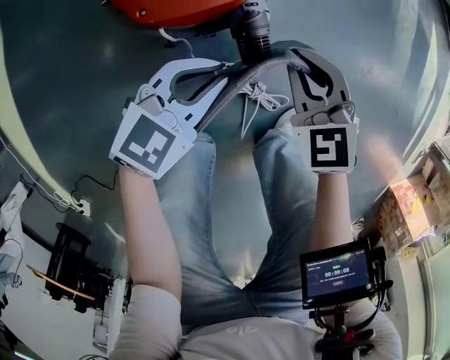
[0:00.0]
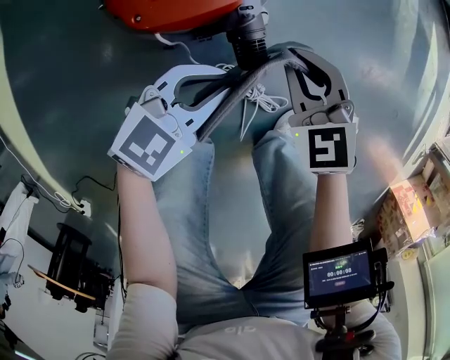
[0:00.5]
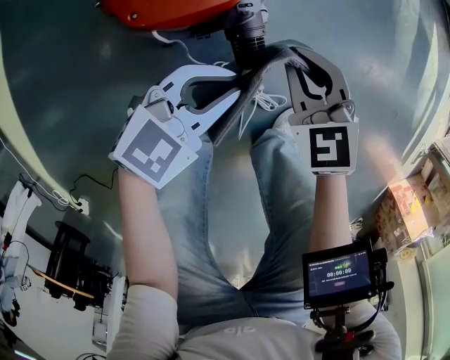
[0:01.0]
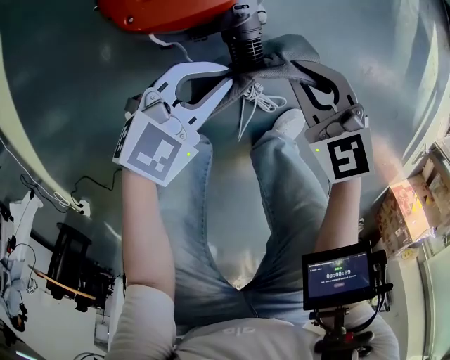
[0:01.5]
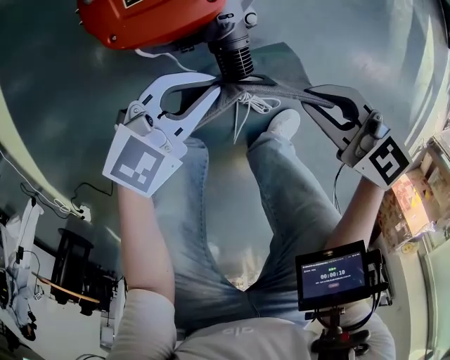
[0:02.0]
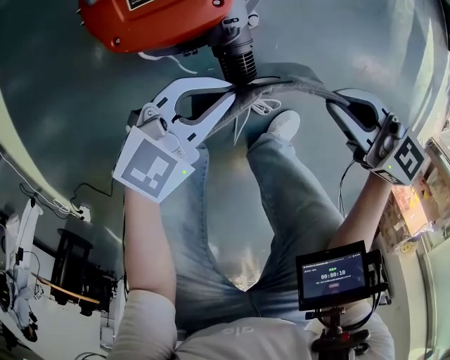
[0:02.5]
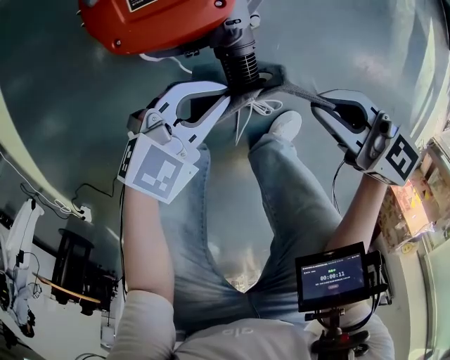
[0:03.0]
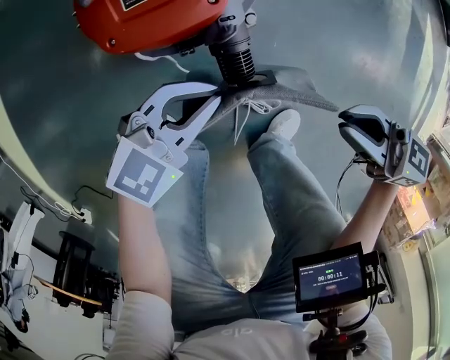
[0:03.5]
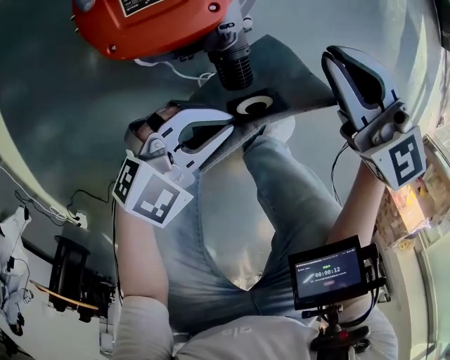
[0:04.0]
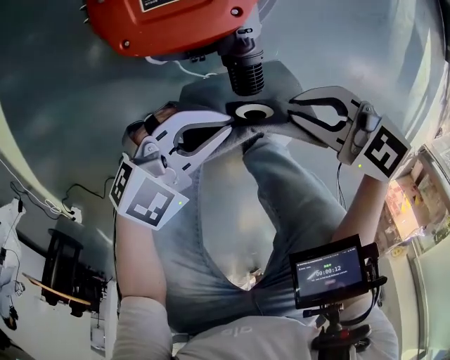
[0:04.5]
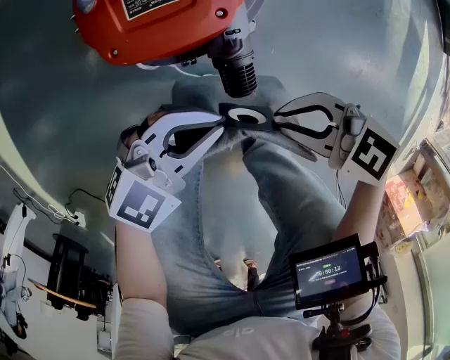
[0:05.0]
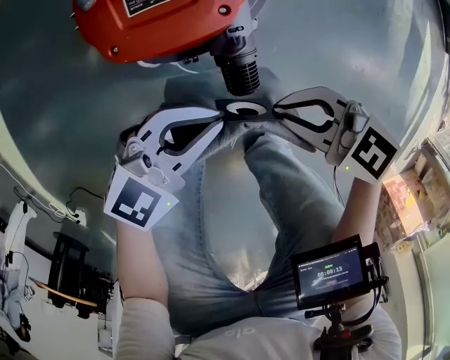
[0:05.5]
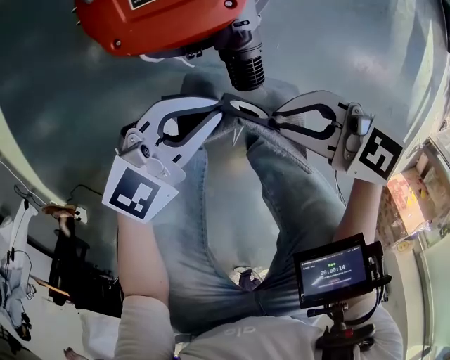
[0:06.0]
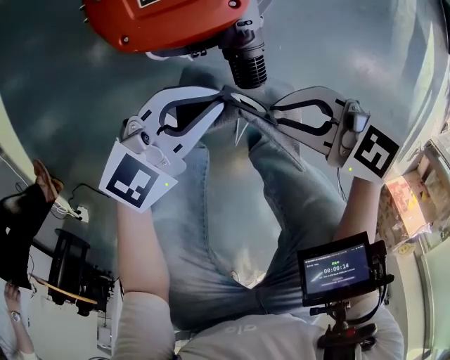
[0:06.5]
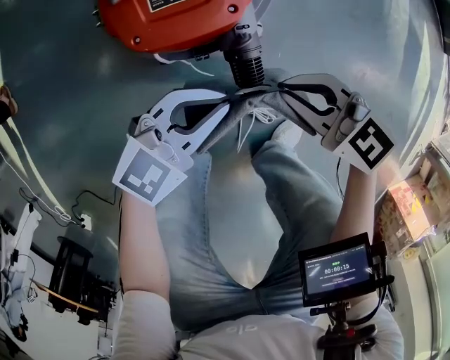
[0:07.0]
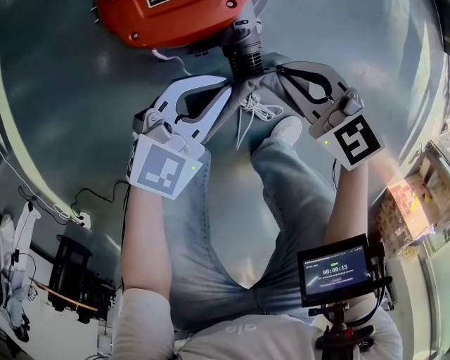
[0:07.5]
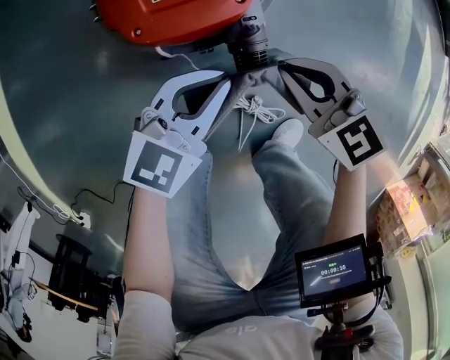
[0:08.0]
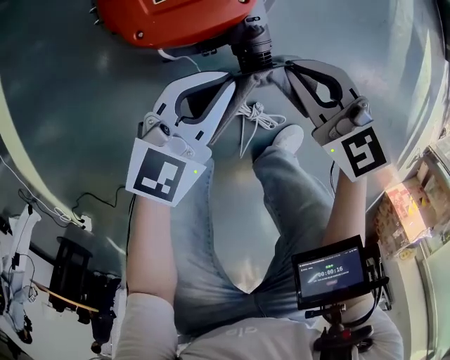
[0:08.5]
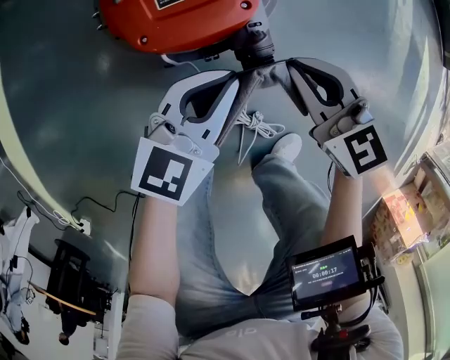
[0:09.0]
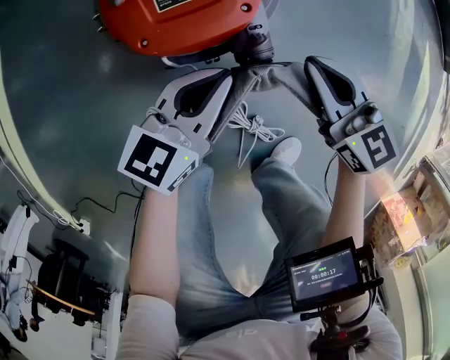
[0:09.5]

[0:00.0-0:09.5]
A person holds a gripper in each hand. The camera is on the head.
0:00.0 to 0:02.0: The right gripper ends up roughly 5 cm from where it was, and swivels approximately 40 degrees.
0:02.0 to 0:04.0: The left gripper ends up approximately 5 cm from where it was. Meanwhile the right gripper ends up about 10 cm from where it was, and swivels approximately 20 degrees.
0:04.0 to 0:05.5: The right gripper moves some 15 cm, and changes its angle by about 40 degrees.
0:05.5 to 0:07.5: The left gripper shifts by about 5 cm. The right gripper changes place by roughly 5 cm, and swivels roughly 30 degrees.
0:07.5 to 0:09.5: Both grippers move forward, about 10 cm. The left gripper changes its angle by about 30 degrees. Meanwhile the right gripper swivels approximately 20 degrees.

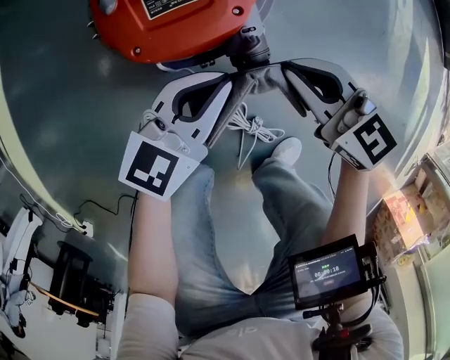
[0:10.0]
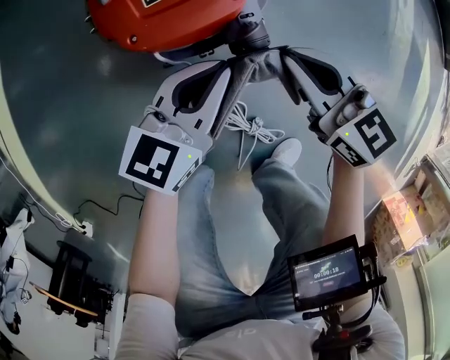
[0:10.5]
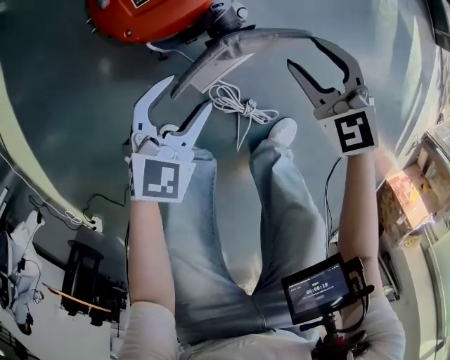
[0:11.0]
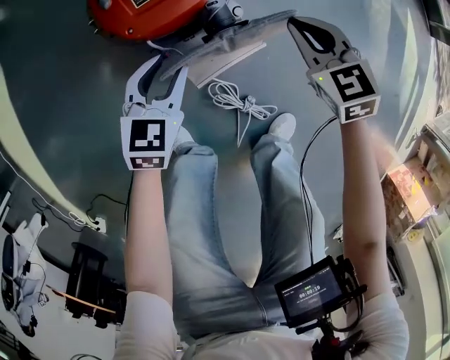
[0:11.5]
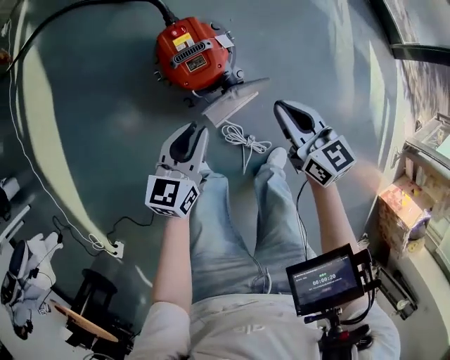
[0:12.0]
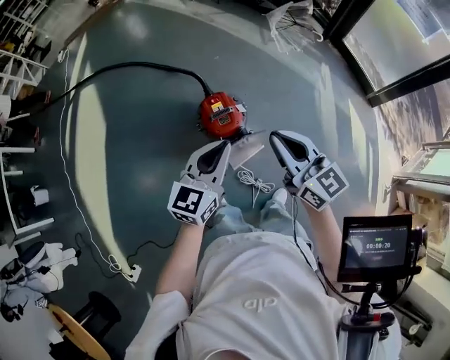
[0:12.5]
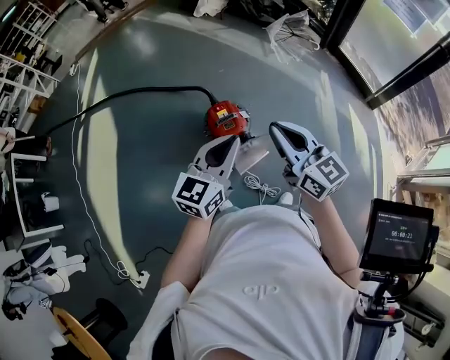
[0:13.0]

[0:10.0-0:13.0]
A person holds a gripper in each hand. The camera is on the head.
0:10.0 to 0:11.5: The right gripper is displaced to the right by about 5 cm, changes its angle by about 30 degrees, and opens, then closes once more; the left gripper shifts approximately 5 cm to the left, changes its angle by some 30 degrees, and opens up.
0:11.5 to 0:13.0: Both grippers travel together upward, some 70 cm. The left gripper points its fingers about 30 degrees further upward, and closes its fingers. Meanwhile the right gripper points its fingers some 40 degrees further upward.

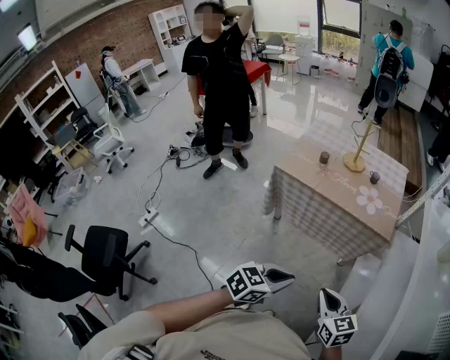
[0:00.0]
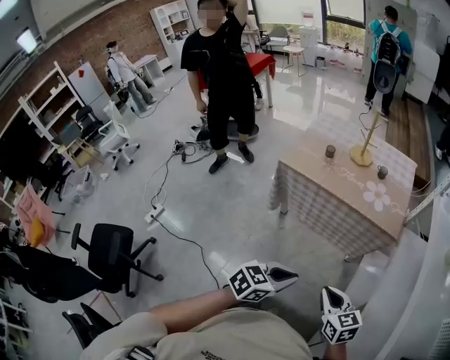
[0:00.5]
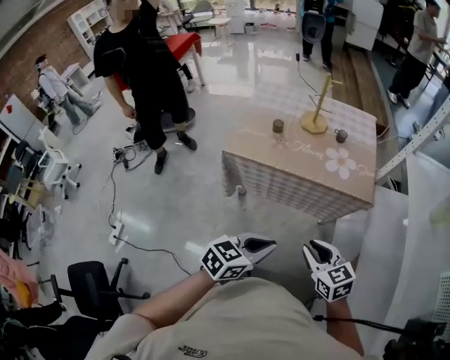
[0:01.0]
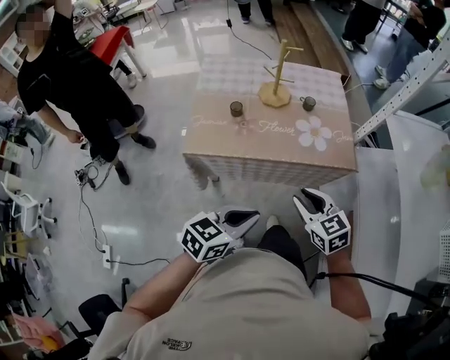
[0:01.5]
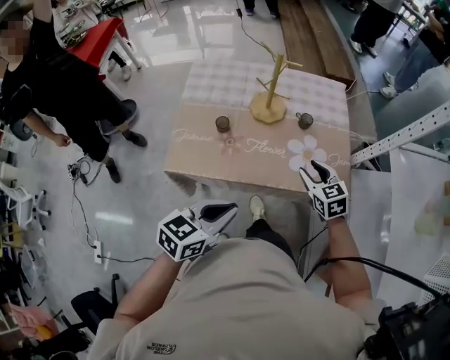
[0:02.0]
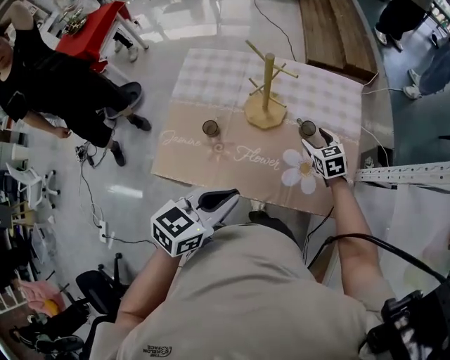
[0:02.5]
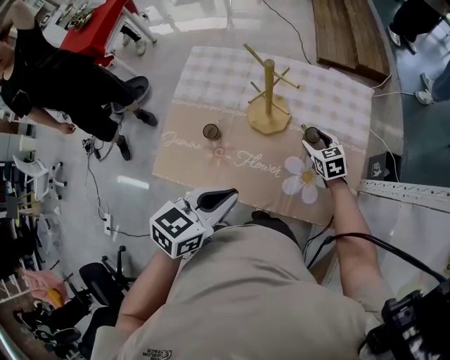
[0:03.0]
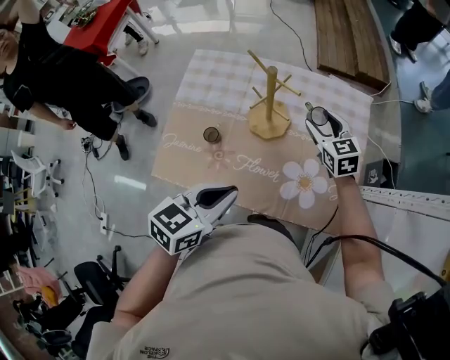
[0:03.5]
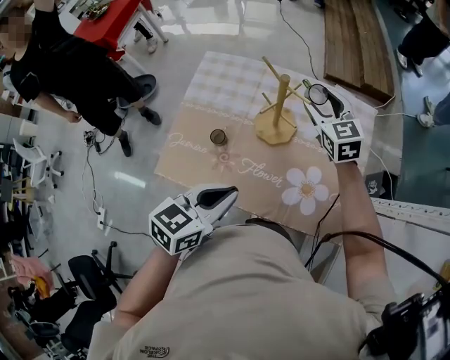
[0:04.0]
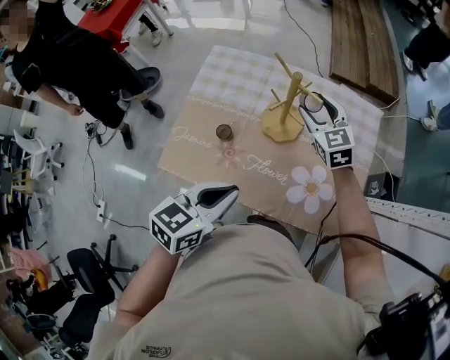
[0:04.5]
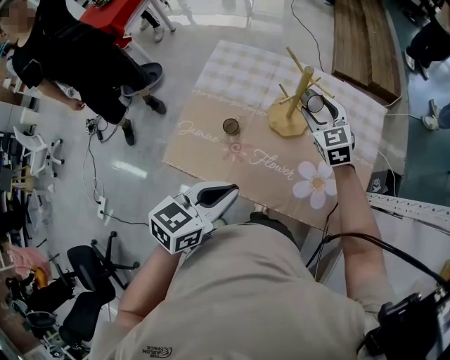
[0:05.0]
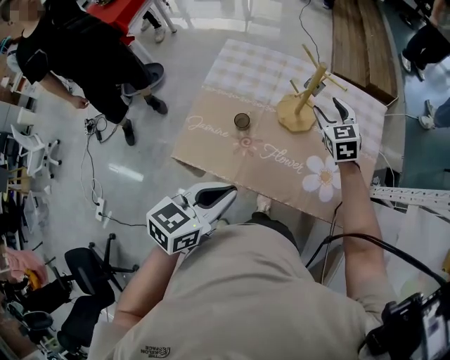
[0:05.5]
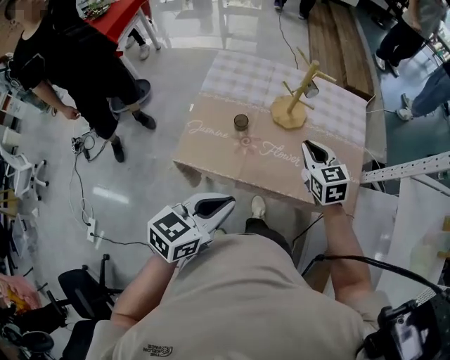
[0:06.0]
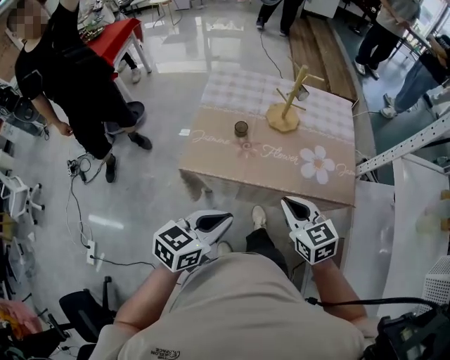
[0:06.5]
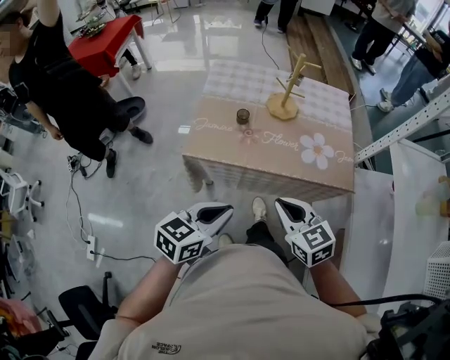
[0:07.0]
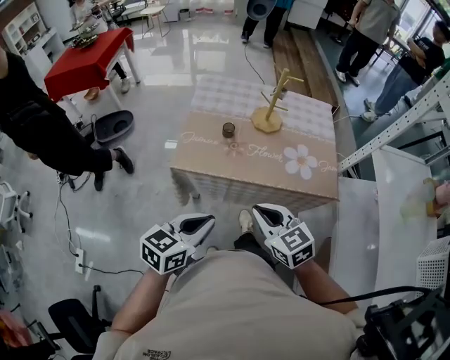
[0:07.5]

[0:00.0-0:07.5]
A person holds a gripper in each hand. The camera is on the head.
0:00.0 to 0:02.0: The two grippers travel together, forward, some 50 cm. The right gripper rotates approximately 20 degrees, and opens up.
0:02.0 to 0:04.0: The left gripper heads forward, covering some 20 cm. Meanwhile the right gripper shifts approximately 30 cm forward.
0:04.0 to 0:05.5: The left gripper goes approximately 10 cm backward and to the left. Meanwhile the right gripper is displaced downward and backward by about 10 cm.
0:05.5 to 0:07.5: The left gripper is displaced backward by roughly 20 cm, while the right gripper is displaced backward by approximately 50 cm, and closes up.

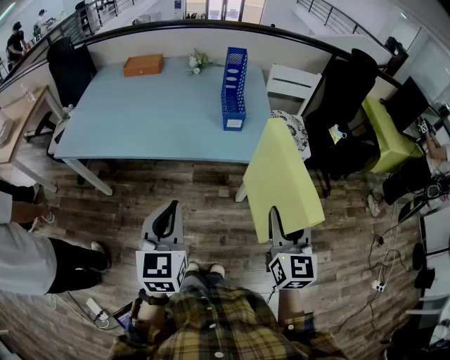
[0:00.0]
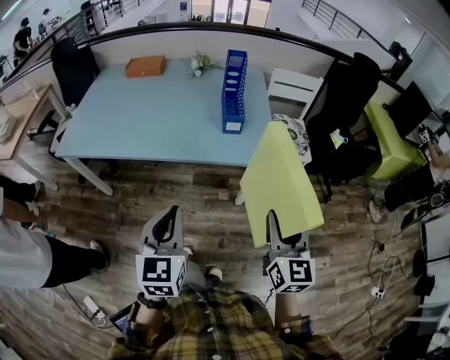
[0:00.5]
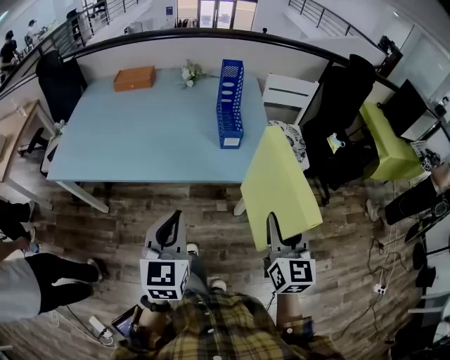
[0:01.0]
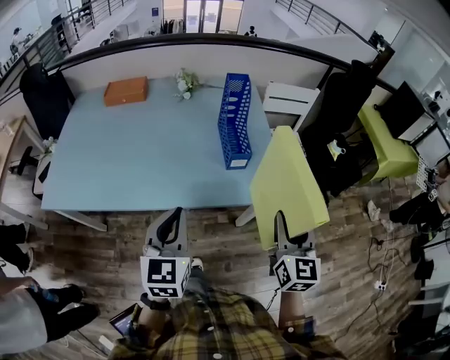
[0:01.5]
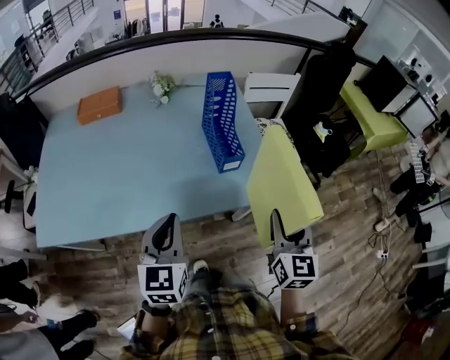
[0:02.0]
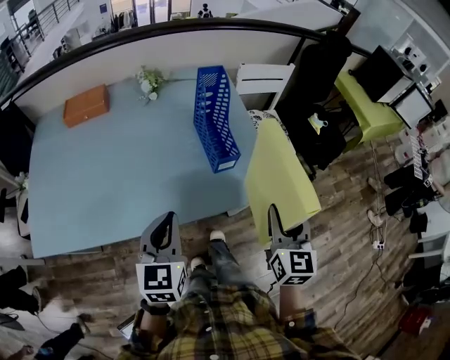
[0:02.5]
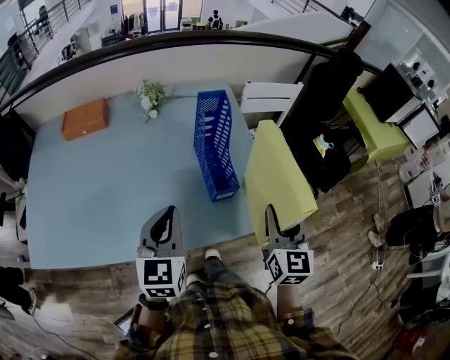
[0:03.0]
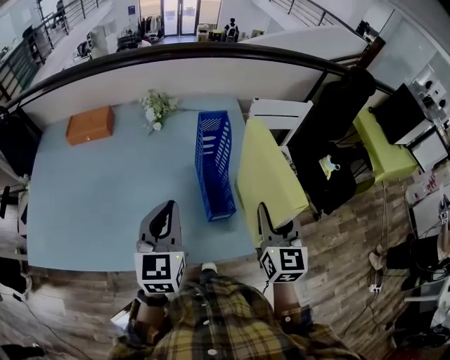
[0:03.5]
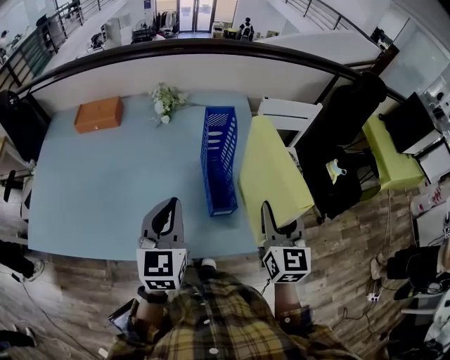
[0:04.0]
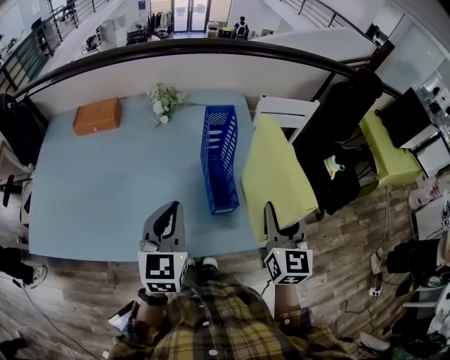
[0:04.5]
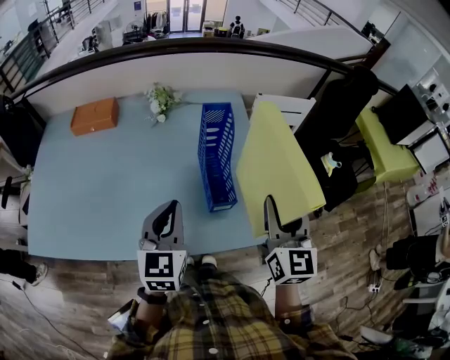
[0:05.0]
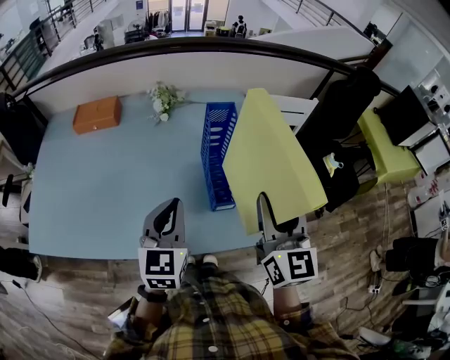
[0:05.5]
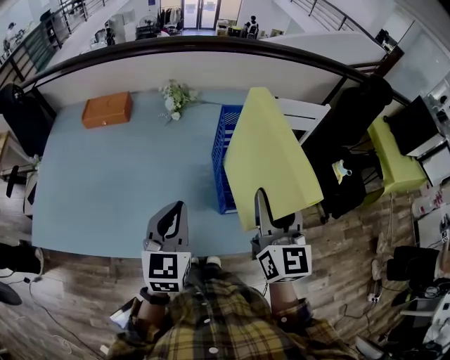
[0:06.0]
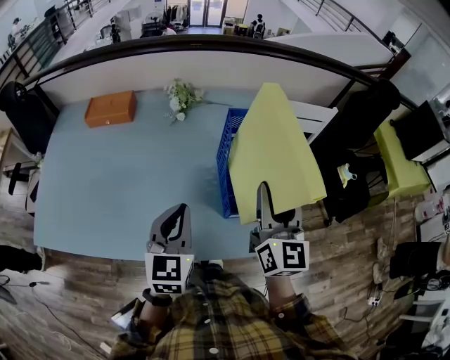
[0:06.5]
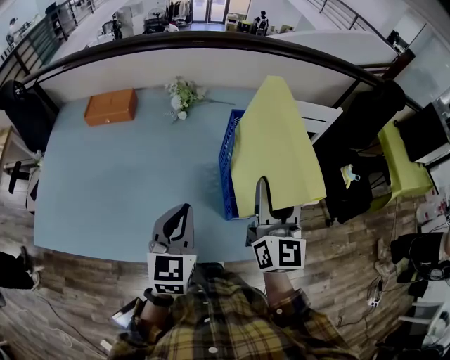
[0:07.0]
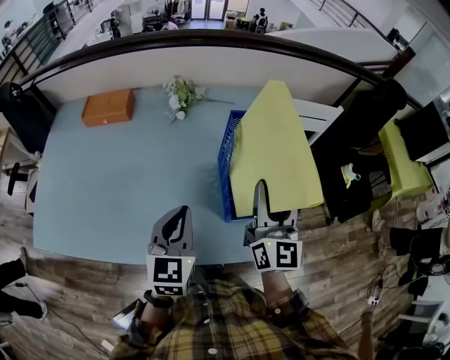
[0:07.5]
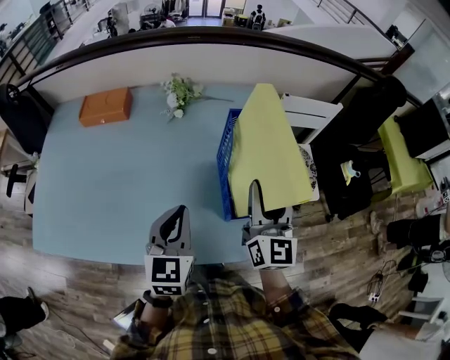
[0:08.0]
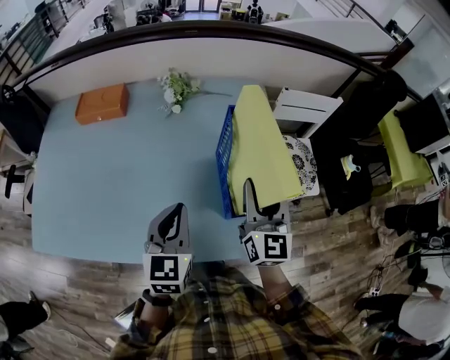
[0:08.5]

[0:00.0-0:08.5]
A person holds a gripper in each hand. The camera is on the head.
0:00.0 to 0:02.0: The two grippers go roughly 20 cm forward.
0:02.0 to 0:04.0: Both grippers travel together forward, approximately 20 cm.
0:04.0 to 0:06.5: The right gripper is displaced to the left and upward by approximately 10 cm.
0:06.5 to 0:08.5: The right gripper travels downward by approximately 5 cm.
